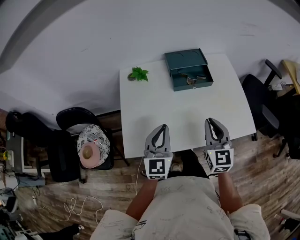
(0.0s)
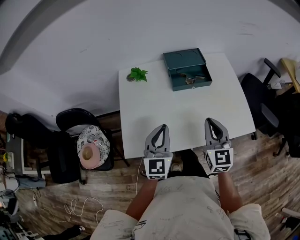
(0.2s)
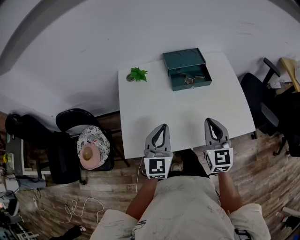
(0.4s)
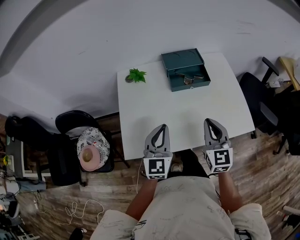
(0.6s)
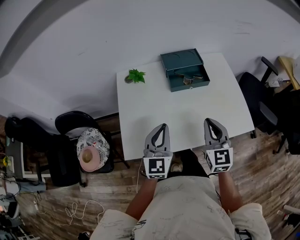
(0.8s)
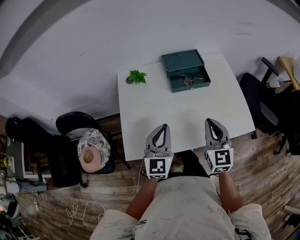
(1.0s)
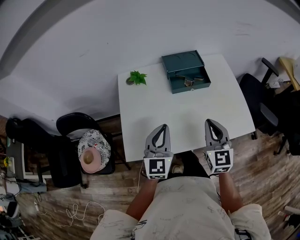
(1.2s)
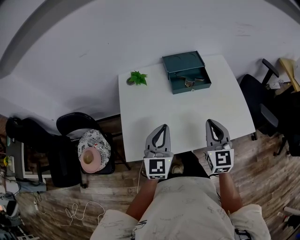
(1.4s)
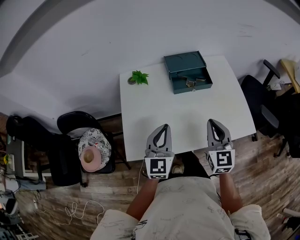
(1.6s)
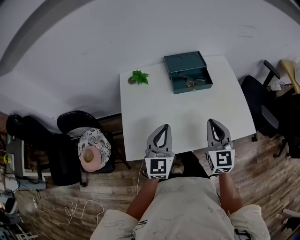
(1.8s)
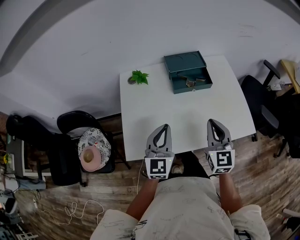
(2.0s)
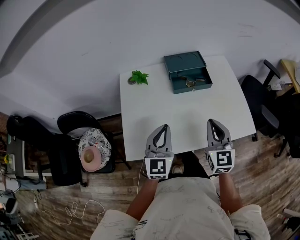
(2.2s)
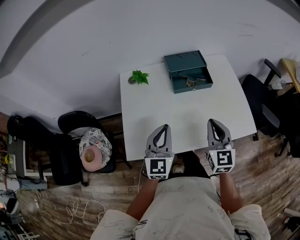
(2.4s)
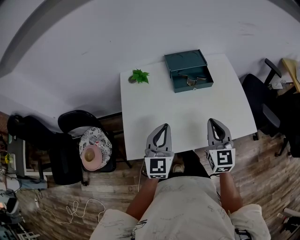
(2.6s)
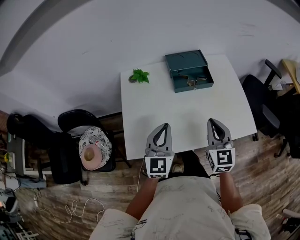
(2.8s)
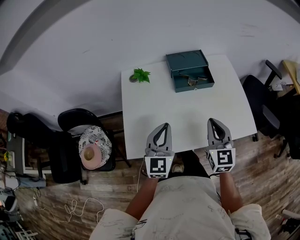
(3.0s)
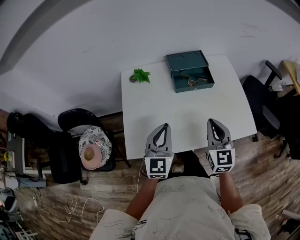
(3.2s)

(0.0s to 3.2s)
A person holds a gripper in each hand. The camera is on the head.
0.0s - 3.2s: Neither gripper changes place.

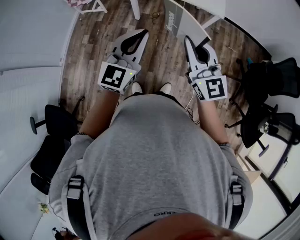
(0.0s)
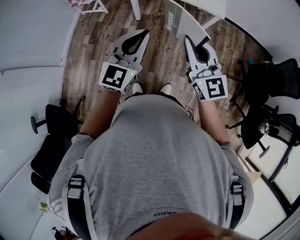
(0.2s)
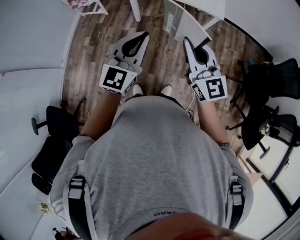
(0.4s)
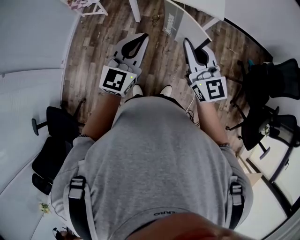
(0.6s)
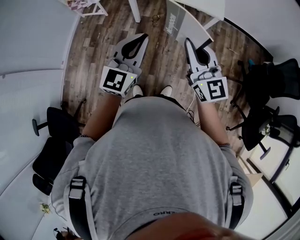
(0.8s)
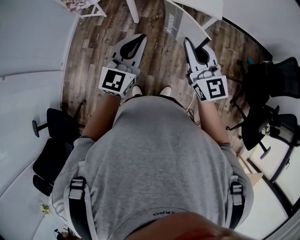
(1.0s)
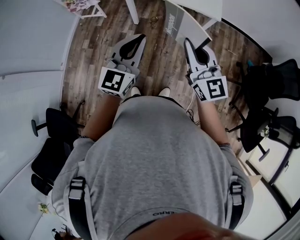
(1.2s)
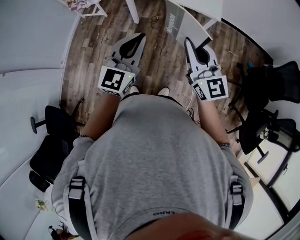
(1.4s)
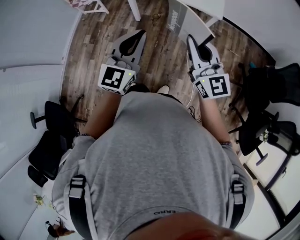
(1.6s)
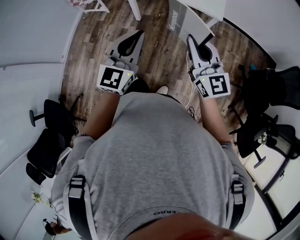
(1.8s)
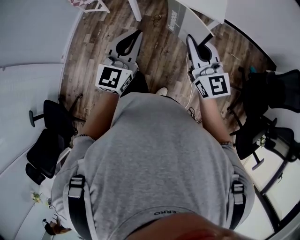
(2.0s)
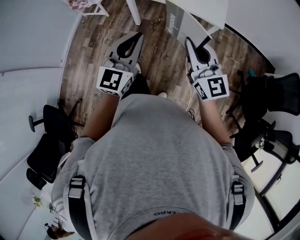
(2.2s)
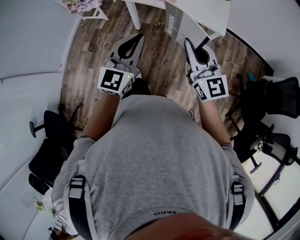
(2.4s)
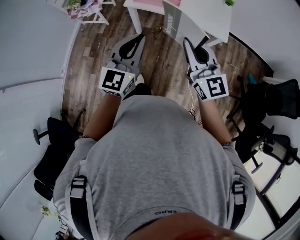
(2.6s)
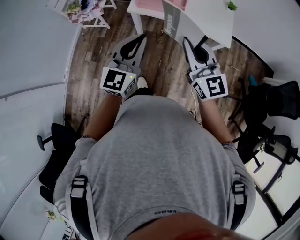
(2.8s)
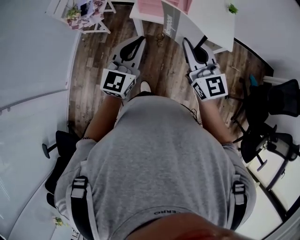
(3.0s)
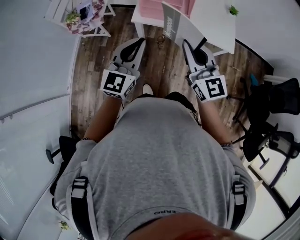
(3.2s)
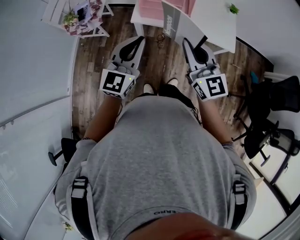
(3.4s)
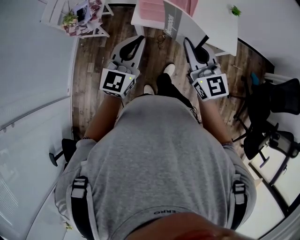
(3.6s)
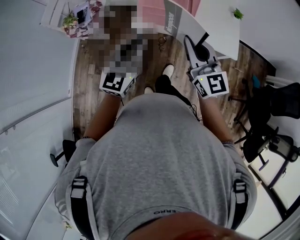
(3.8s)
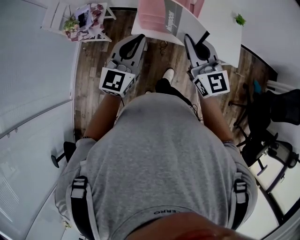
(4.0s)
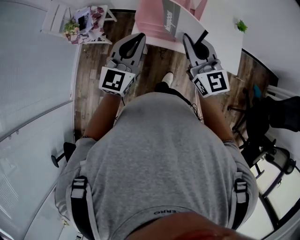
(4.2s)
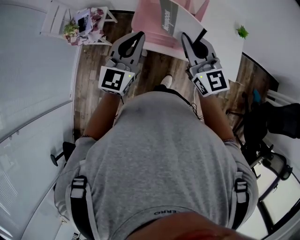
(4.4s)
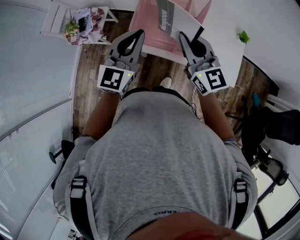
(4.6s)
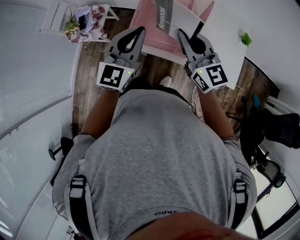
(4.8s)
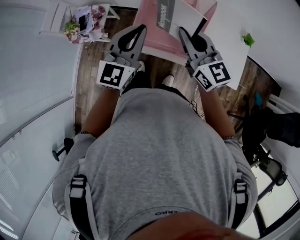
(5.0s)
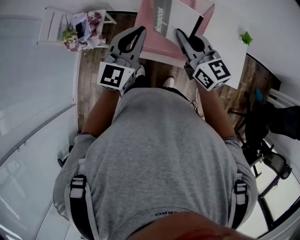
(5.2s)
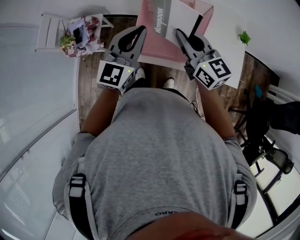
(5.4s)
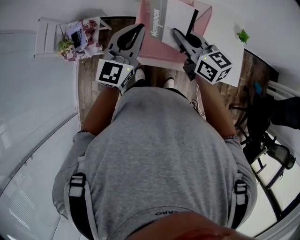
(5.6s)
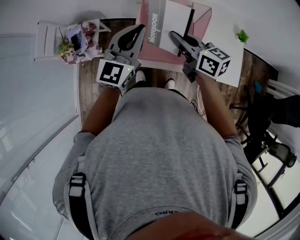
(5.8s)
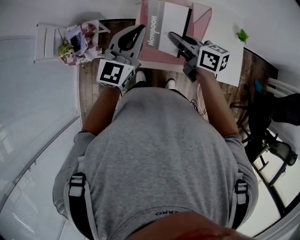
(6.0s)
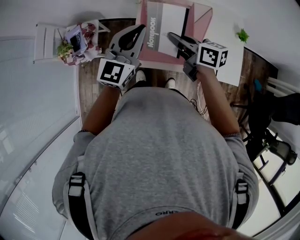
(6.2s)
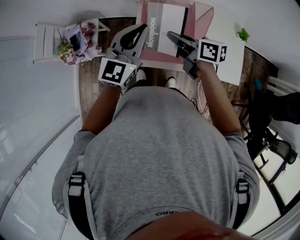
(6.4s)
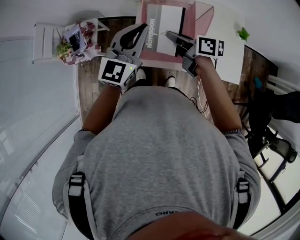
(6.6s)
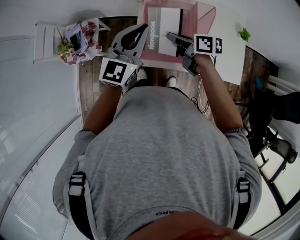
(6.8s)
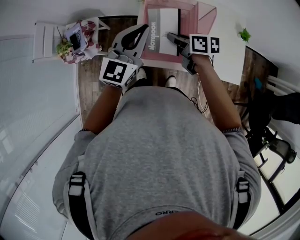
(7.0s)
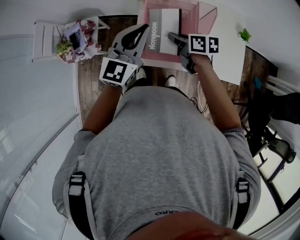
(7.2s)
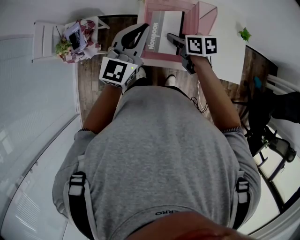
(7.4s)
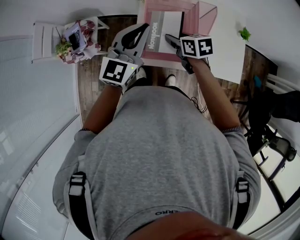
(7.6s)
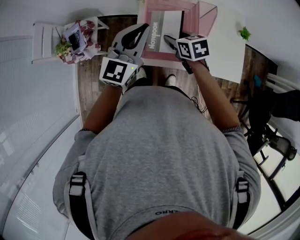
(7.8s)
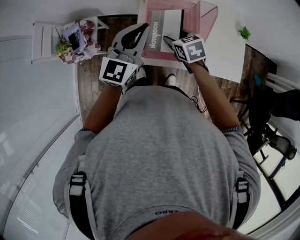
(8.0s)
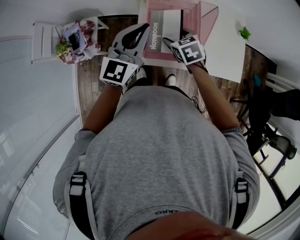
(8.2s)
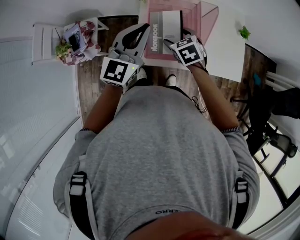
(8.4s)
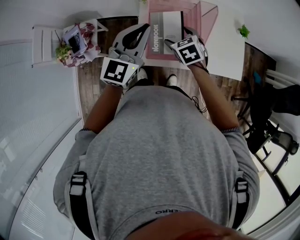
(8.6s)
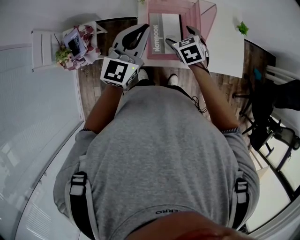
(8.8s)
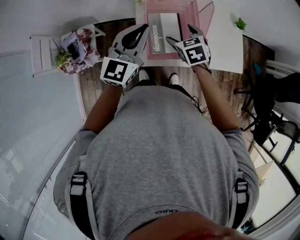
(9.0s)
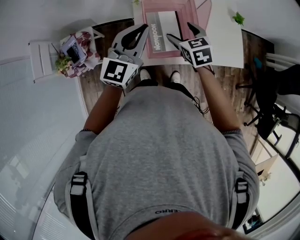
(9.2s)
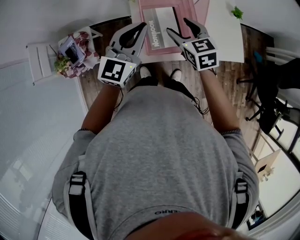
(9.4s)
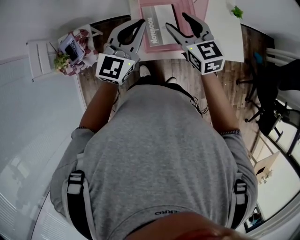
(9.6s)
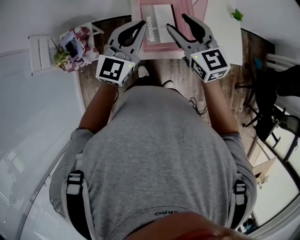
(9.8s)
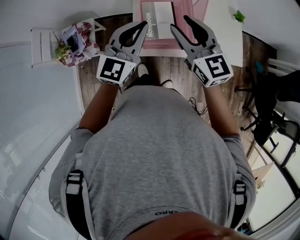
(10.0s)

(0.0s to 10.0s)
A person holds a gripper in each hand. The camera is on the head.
0.0s - 1.4s: The right gripper is displaced to the right by some 5 cm, while the left gripper changes place by roughly 5 cm.
1.4s - 2.8s: Both grippers travel together forward, approximately 20 cm.
2.8s - 4.2s: The grippers both shift forward by about 25 cm.
4.2s - 5.8s: Both grippers travel together forward, some 20 cm. The right gripper turns by about 40 degrees.
5.8s - 7.2s: The right gripper goes approximately 10 cm downward, and rotates roughly 30 degrees.
7.2s - 8.6s: The right gripper swivels about 50 degrees, and opens its fingers.
8.6s - 10.0s: The right gripper heads upward, covering roughly 20 cm, angles its fingers upward, by about 50 degrees, and closes its fingers. The left gripper changes place by some 5 cm.

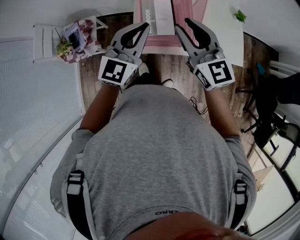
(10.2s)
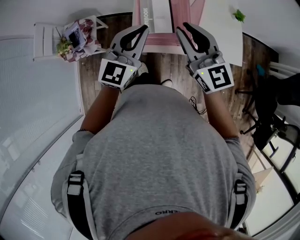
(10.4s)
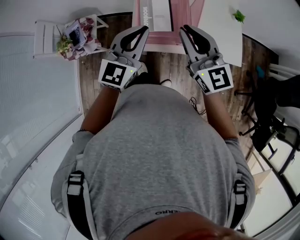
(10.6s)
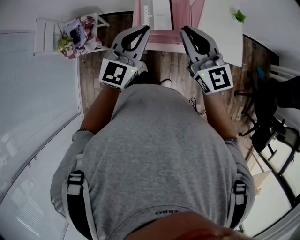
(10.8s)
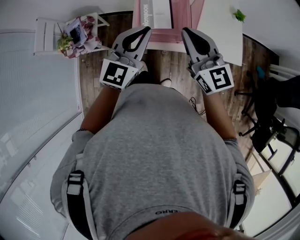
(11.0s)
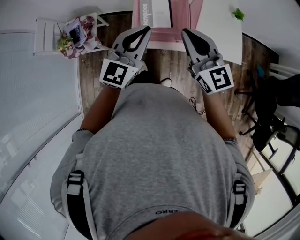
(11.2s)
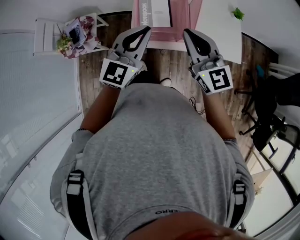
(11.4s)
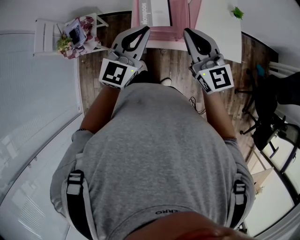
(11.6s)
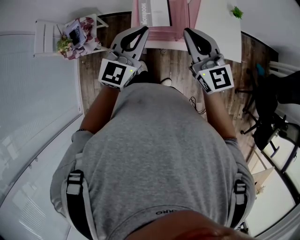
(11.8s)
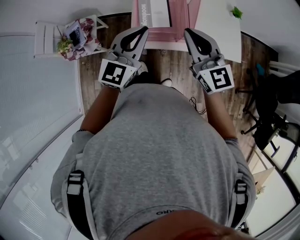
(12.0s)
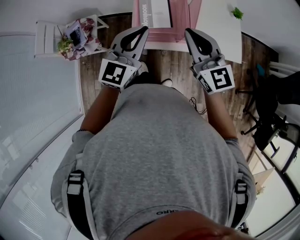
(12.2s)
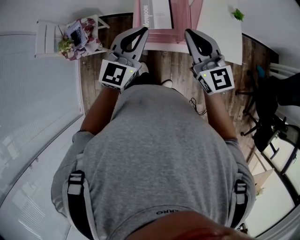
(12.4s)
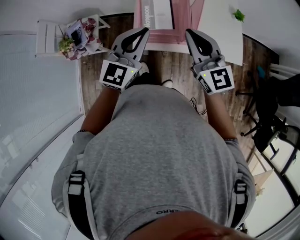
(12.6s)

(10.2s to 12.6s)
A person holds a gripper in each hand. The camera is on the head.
10.2s - 11.4s: Both grippers travel together backward, roughly 5 cm.
11.4s - 12.6s: The grippers make only small movements.

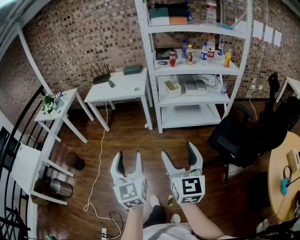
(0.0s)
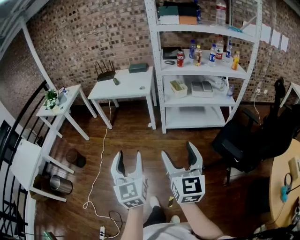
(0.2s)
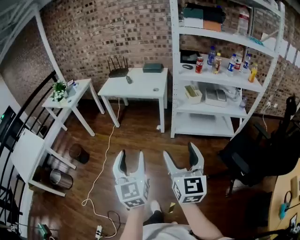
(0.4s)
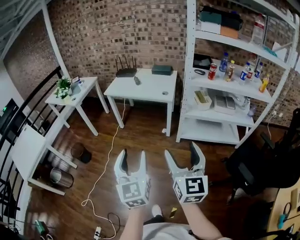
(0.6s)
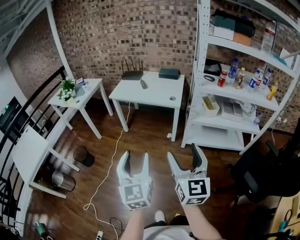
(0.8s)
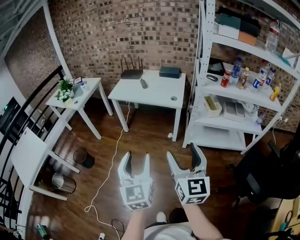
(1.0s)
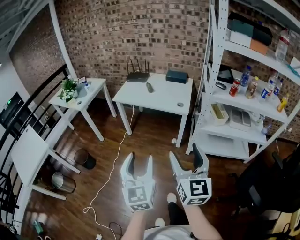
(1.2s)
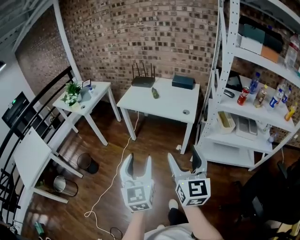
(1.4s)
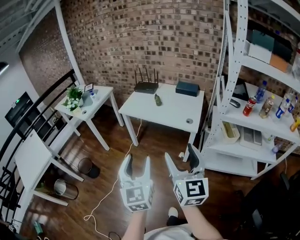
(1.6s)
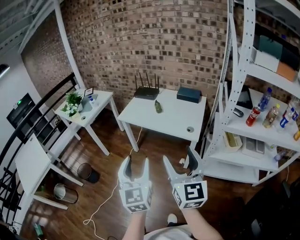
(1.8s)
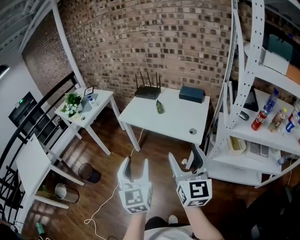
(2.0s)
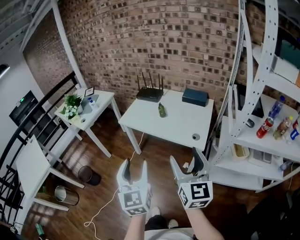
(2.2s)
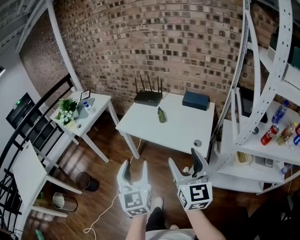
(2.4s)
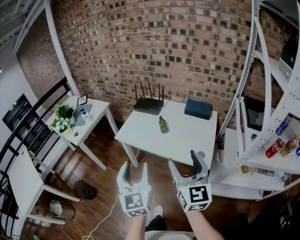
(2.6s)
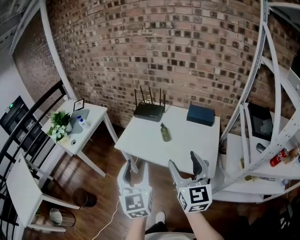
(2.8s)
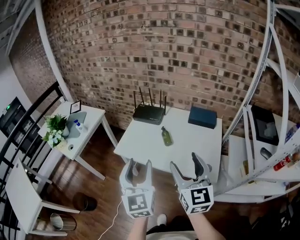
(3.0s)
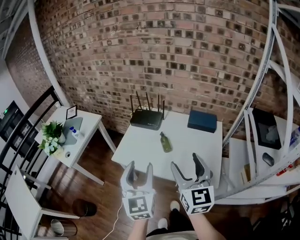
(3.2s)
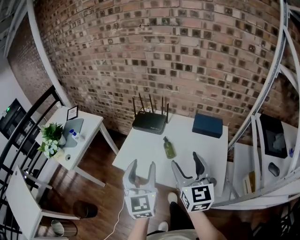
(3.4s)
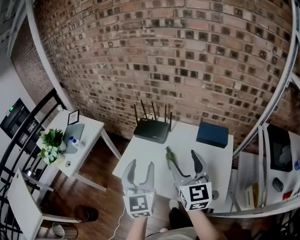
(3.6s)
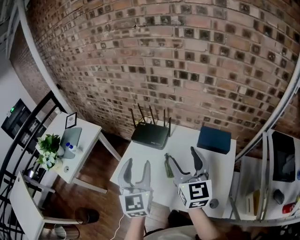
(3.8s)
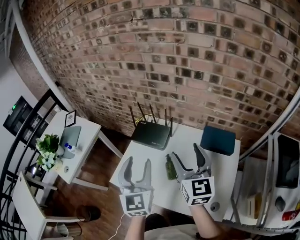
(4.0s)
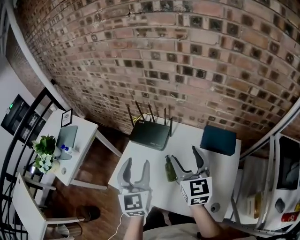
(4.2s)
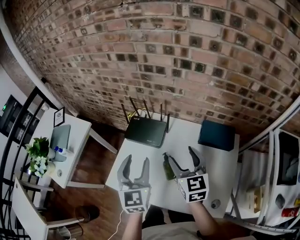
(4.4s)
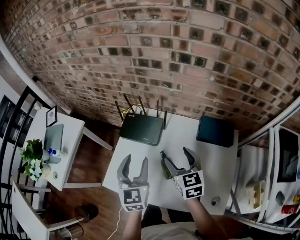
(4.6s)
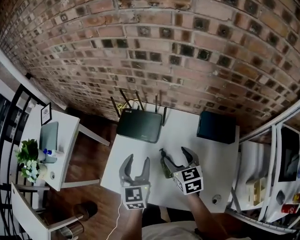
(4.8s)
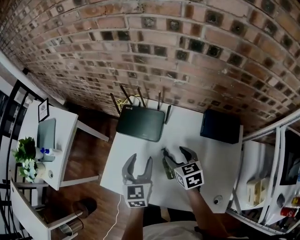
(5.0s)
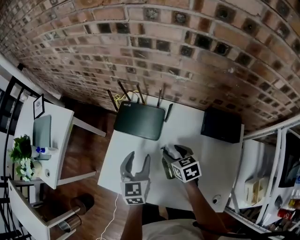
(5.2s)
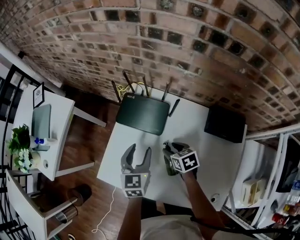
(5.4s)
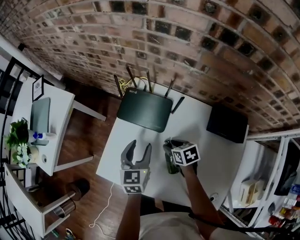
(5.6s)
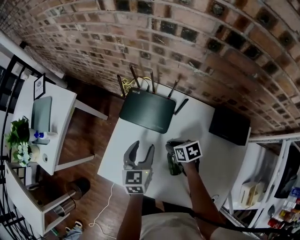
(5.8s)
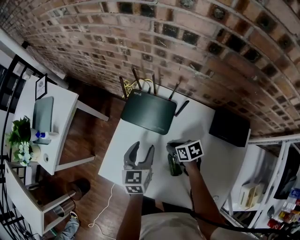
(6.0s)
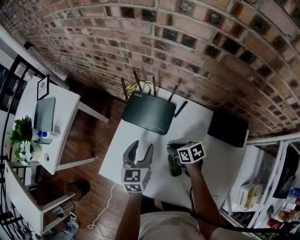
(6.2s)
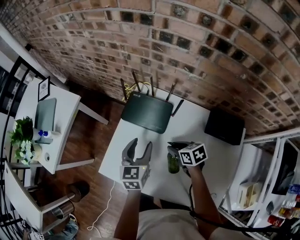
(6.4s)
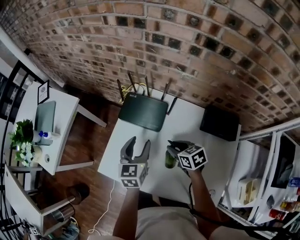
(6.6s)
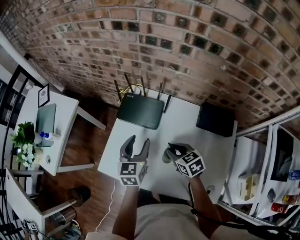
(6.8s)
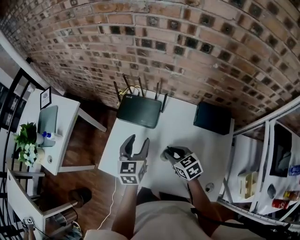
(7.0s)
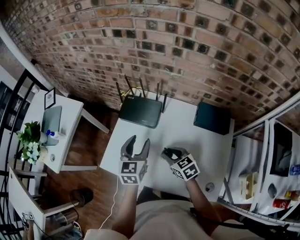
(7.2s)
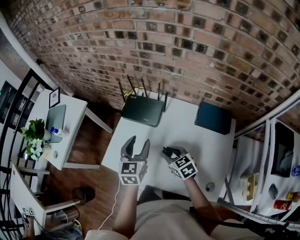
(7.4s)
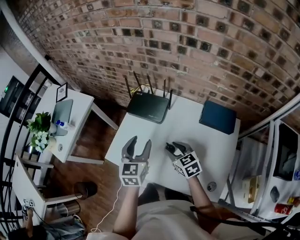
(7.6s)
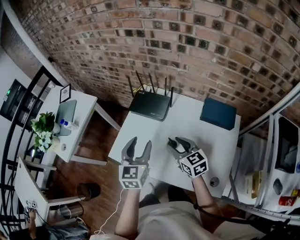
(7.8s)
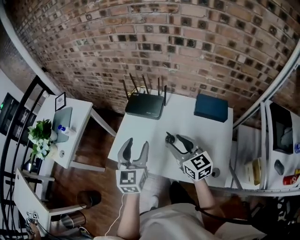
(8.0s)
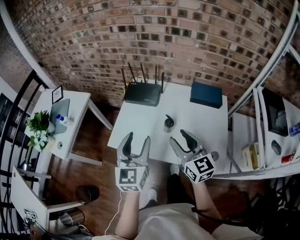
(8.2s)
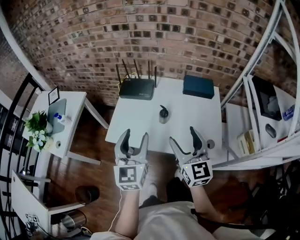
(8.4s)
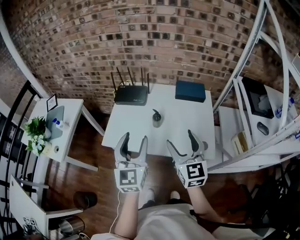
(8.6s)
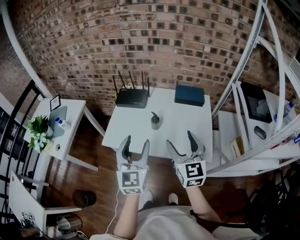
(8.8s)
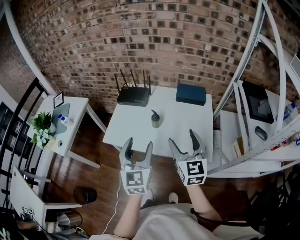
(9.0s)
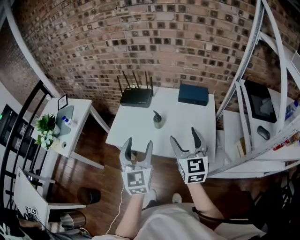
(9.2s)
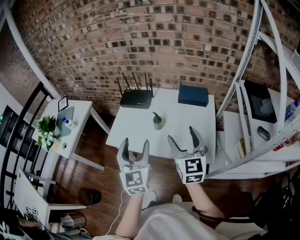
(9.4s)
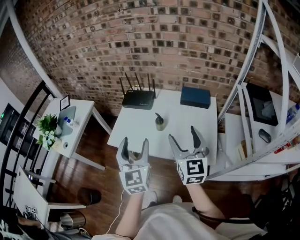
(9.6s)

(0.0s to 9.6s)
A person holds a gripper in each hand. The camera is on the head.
0.0s - 1.6s: The pair of grippers is taken forward, roughly 50 cm.
1.6s - 3.2s: Both grippers are carried forward, about 50 cm.
3.2s - 4.8s: Both grippers move forward and downward, approximately 40 cm. The right gripper tips its fingers downward by some 30 degrees.
4.8s - 6.4s: The left gripper shifts roughly 10 cm downward and forward. The right gripper heads downward, covering some 10 cm, changes its angle by roughly 40 degrees, and closes.
6.4s - 8.0s: The left gripper shifts some 25 cm backward and upward; the right gripper shifts some 25 cm upward and backward, and angles its fingers upward, by approximately 30 degrees.
8.0s - 9.6s: The right gripper is displaced backward, upward and to the right by some 25 cm, changes its angle by some 30 degrees, and opens up. Meanwhile the left gripper shifts roughly 20 cm backward and upward.
